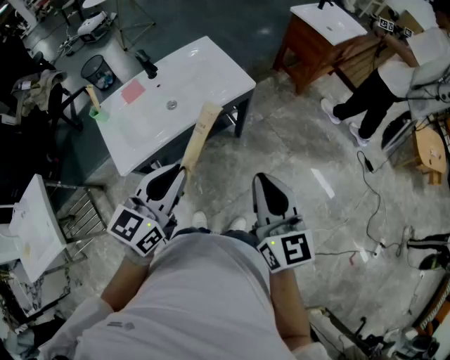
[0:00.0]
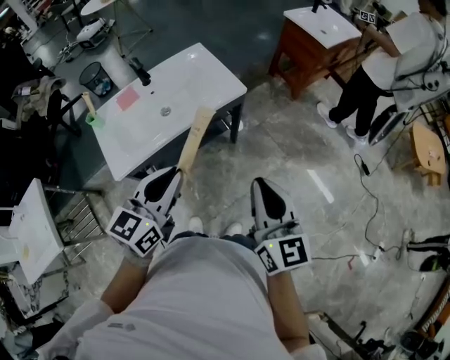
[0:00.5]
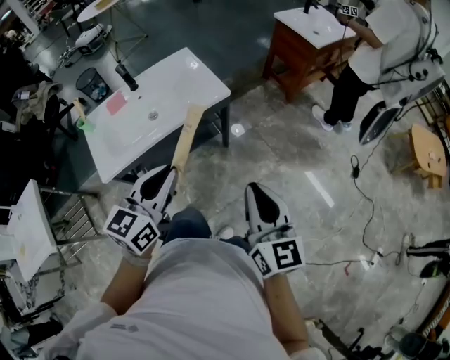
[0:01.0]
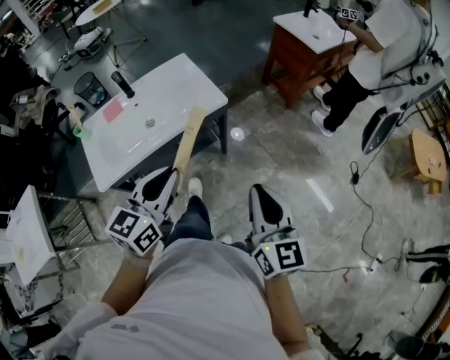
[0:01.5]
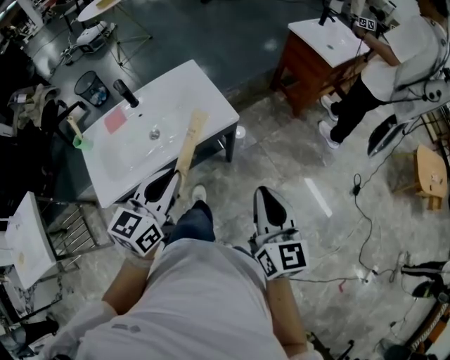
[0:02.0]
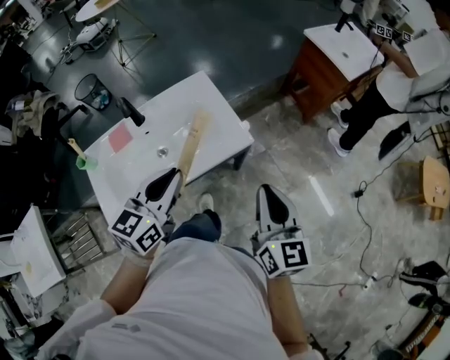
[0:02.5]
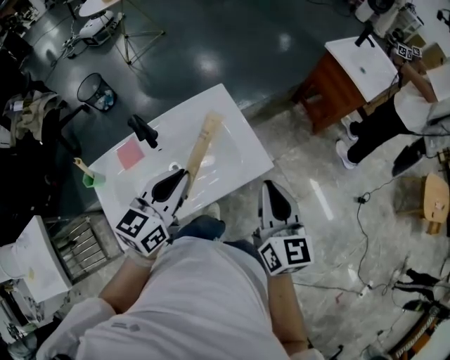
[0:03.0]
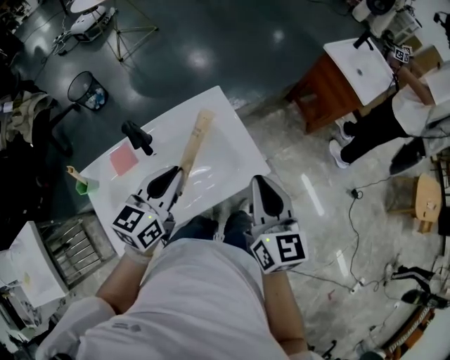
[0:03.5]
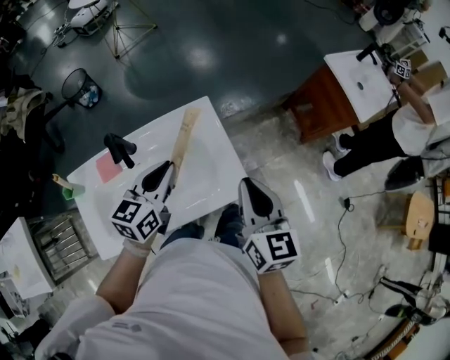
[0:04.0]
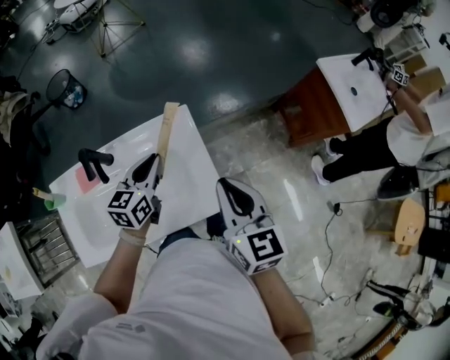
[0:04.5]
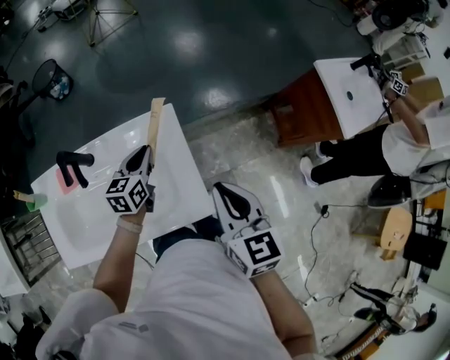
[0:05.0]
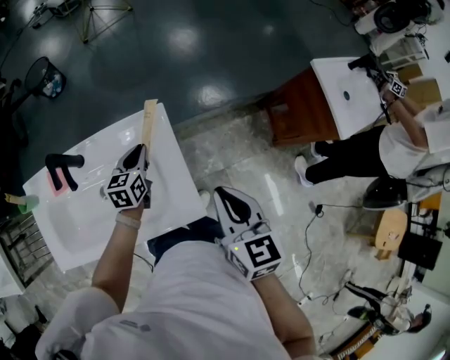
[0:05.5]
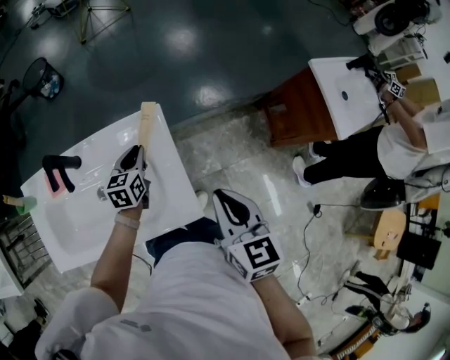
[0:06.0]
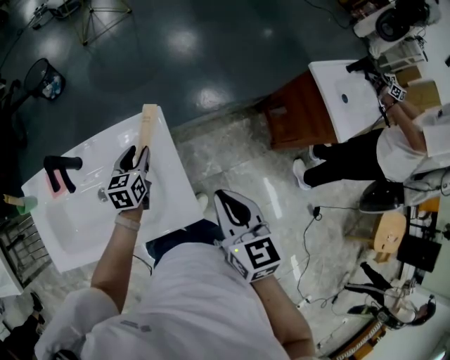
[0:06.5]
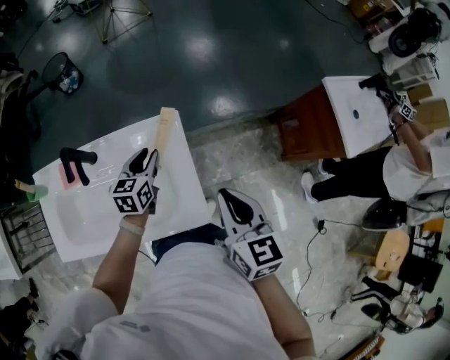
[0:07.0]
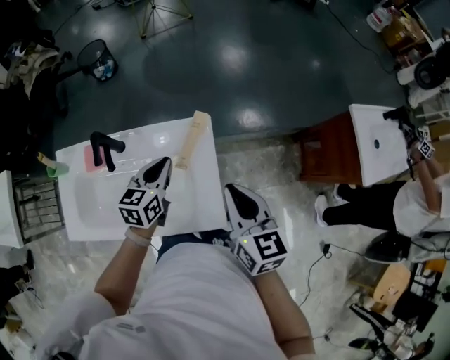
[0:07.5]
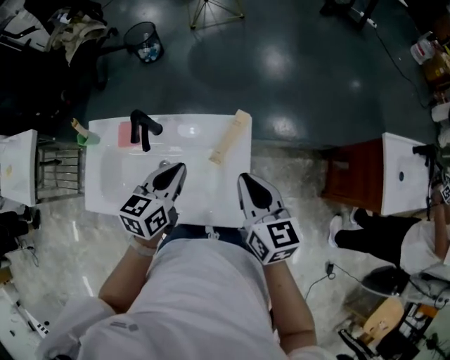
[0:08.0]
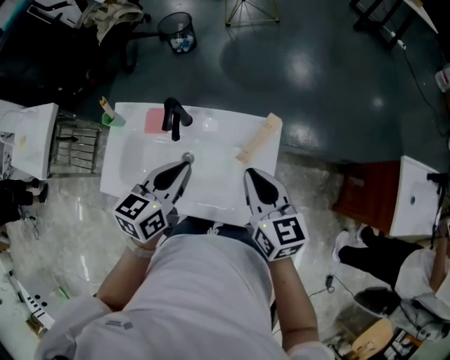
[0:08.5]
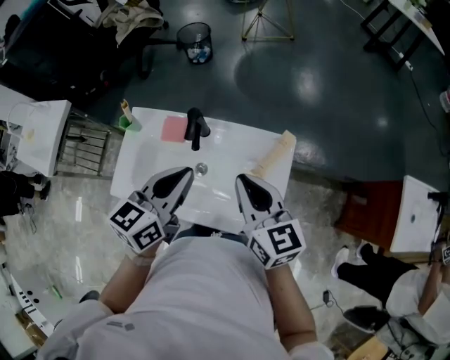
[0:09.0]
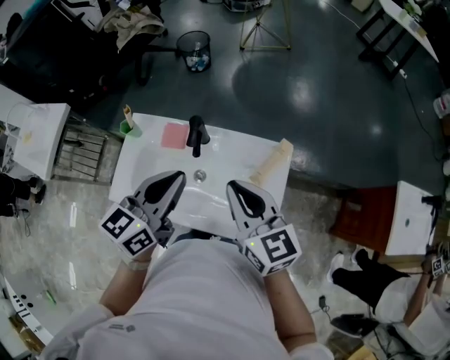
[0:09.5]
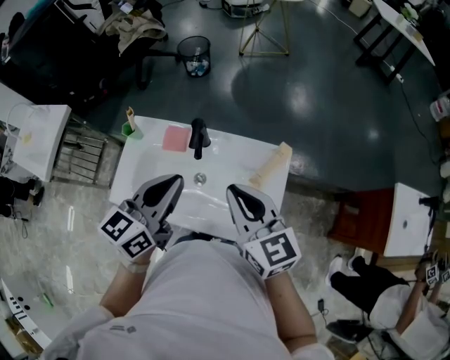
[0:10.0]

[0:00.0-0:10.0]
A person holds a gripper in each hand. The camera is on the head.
0:00.0 to 0:02.0: Both grippers travel together forward and to the right, about 20 cm.
0:02.0 to 0:04.0: The pair of grippers is taken forward, approximately 40 cm.
0:04.0 to 0:06.0: The right gripper is displaced to the right, forward and downward by roughly 15 cm, while the left gripper shifts roughly 25 cm downward and forward, and turns by about 20 degrees.
0:06.0 to 0:08.0: The right gripper travels to the left and forward by approximately 10 cm, and changes its angle by roughly 20 degrees, while the left gripper goes about 20 cm upward and backward, and opens, then closes again.
0:08.0 to 0:10.0: Both grippers travel together to the left and upward, roughly 20 cm. The right gripper turns by roughly 20 degrees.

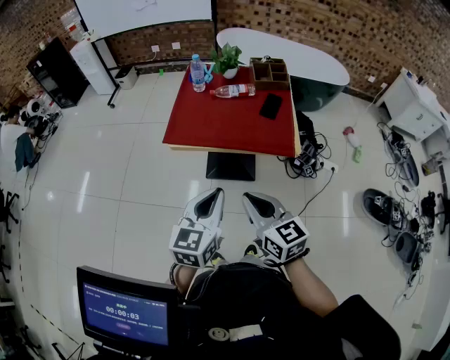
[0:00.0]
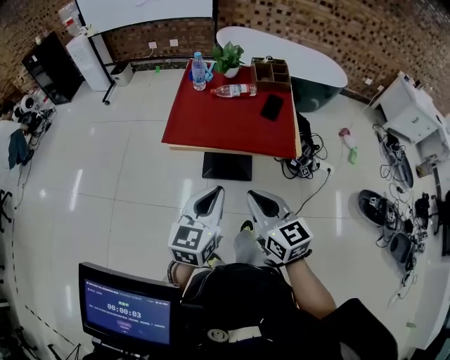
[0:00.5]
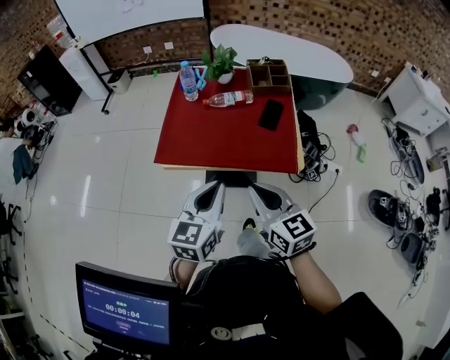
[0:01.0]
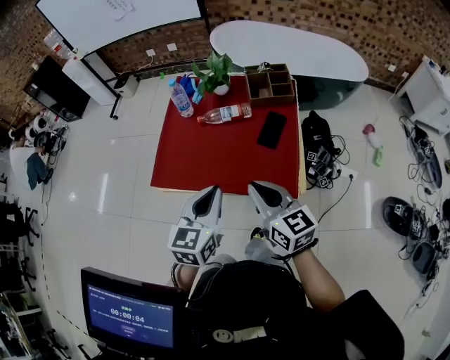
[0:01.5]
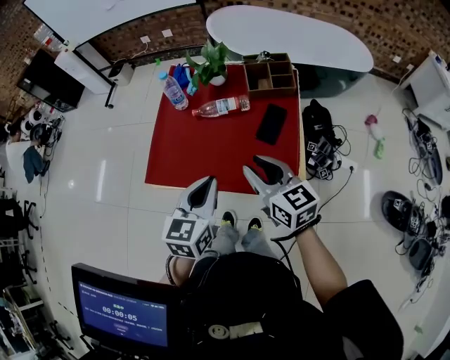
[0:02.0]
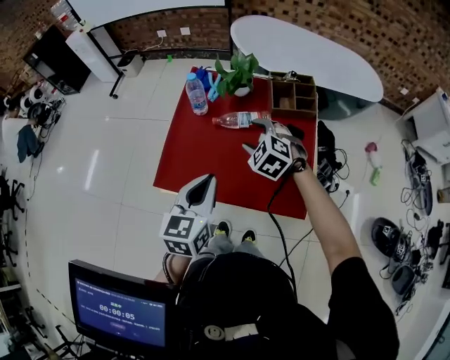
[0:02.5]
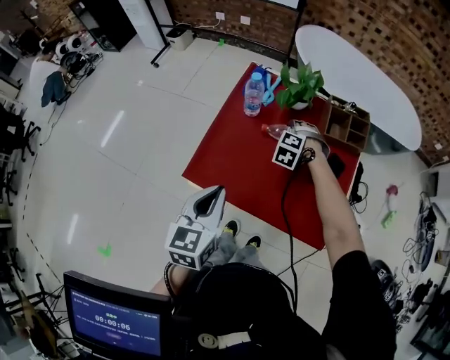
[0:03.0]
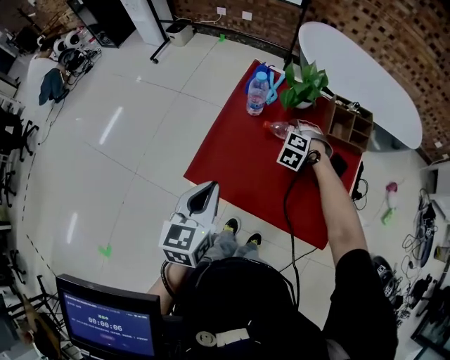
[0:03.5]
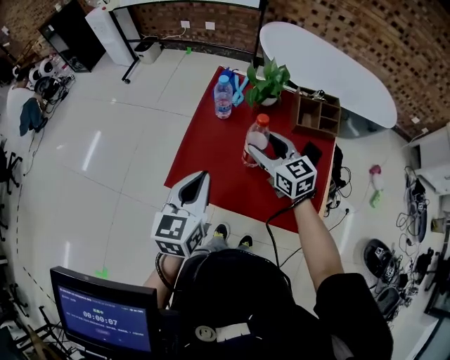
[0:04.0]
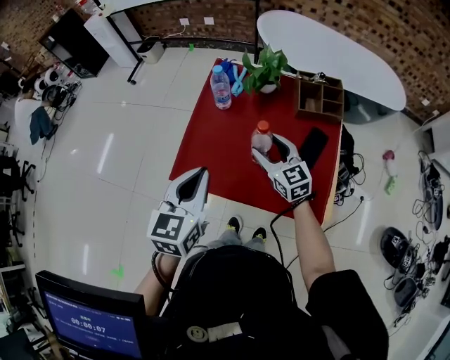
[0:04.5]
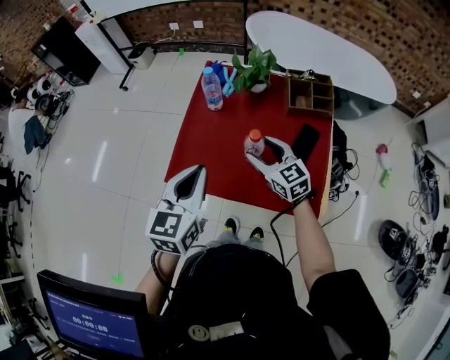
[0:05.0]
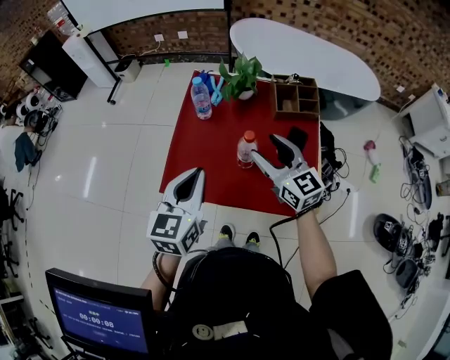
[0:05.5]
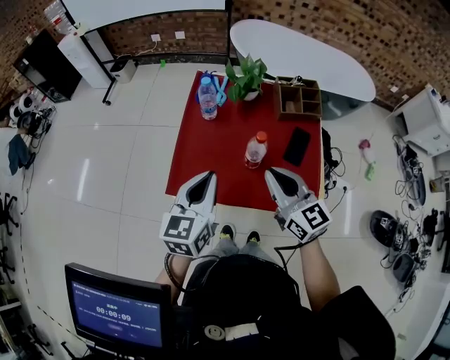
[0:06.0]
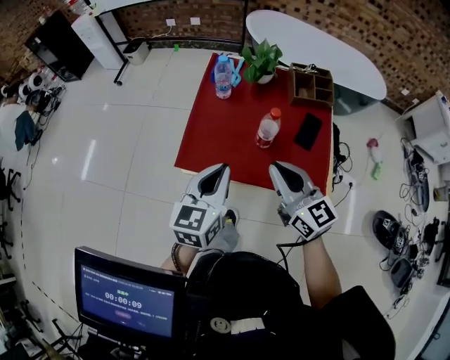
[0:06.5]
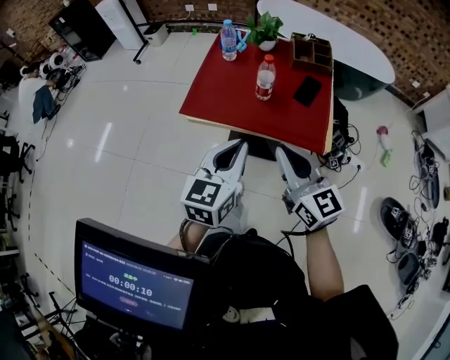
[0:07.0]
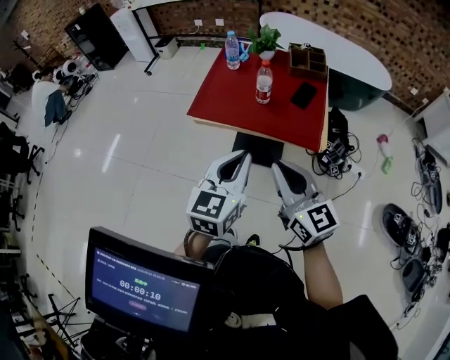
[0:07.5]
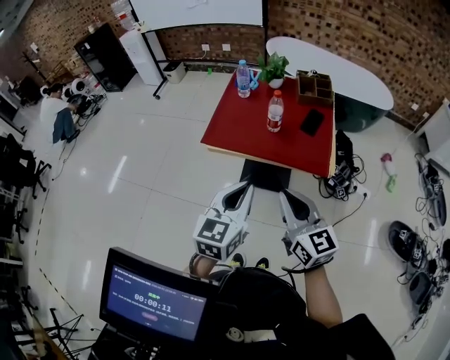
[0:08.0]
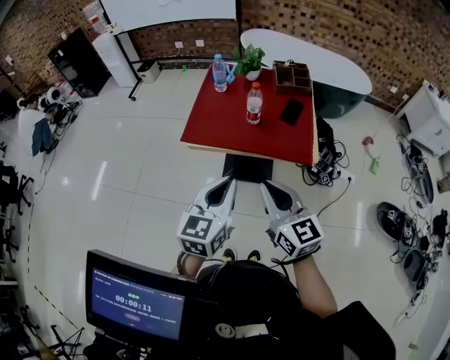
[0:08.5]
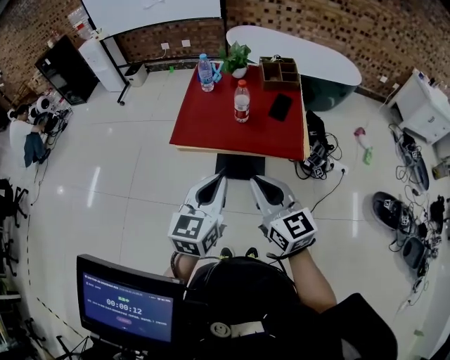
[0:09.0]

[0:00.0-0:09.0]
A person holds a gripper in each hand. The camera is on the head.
0:00.0 to 0:02.0: Both grippers move forward, some 30 cm. The right gripper opens up.
0:02.0 to 0:04.5: The right gripper goes roughly 20 cm forward, downward and to the left, and opens up; the left gripper goes about 15 cm to the left and forward.
0:04.5 to 0:07.0: The left gripper heads backward, covering roughly 25 cm; the right gripper goes roughly 40 cm backward and upward, and closes.
0:07.0 to 0:09.0: Both grippers move backward, approximately 10 cm.

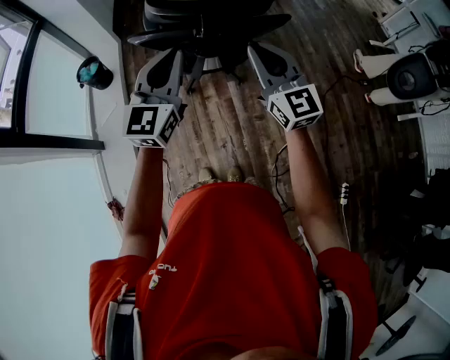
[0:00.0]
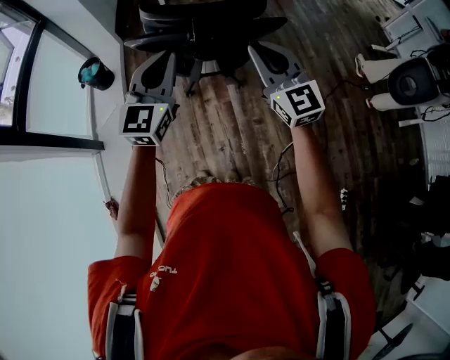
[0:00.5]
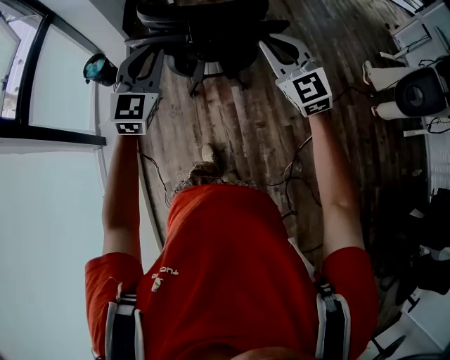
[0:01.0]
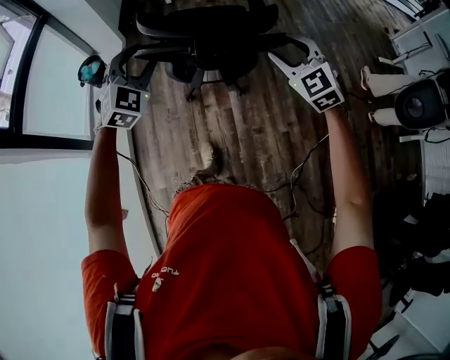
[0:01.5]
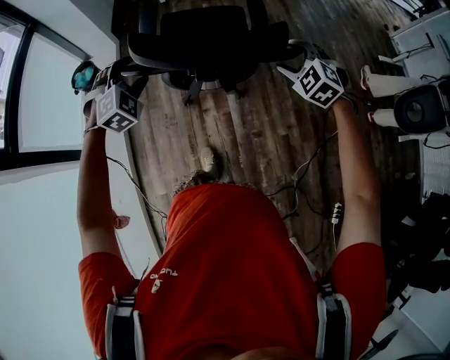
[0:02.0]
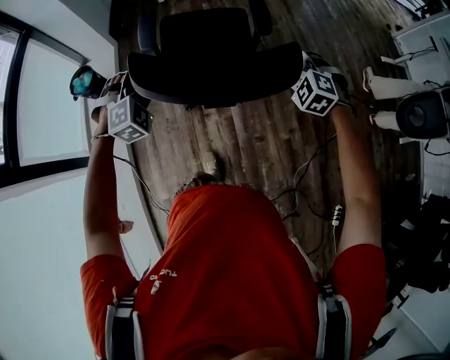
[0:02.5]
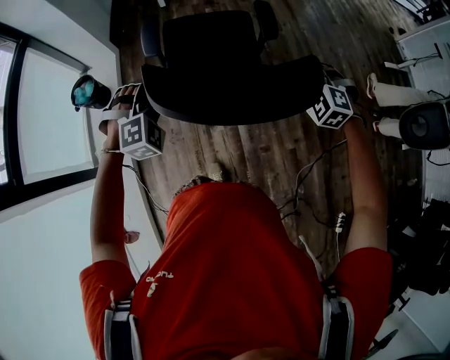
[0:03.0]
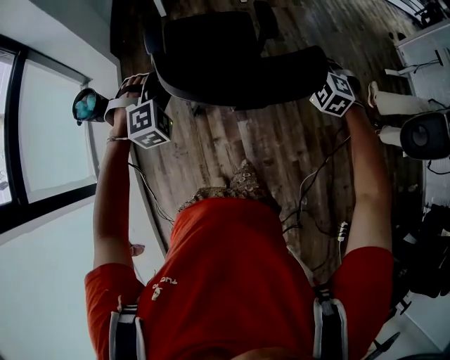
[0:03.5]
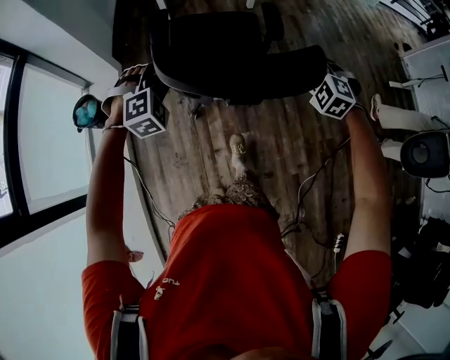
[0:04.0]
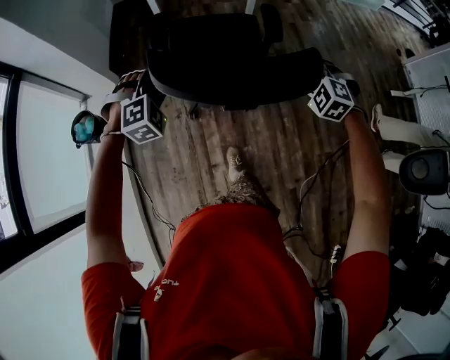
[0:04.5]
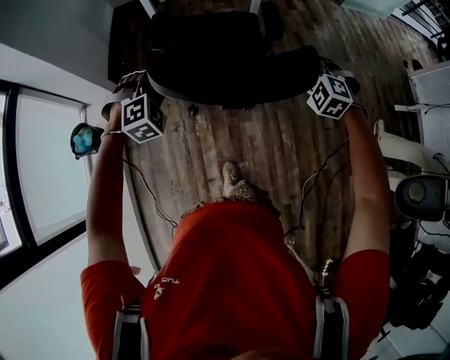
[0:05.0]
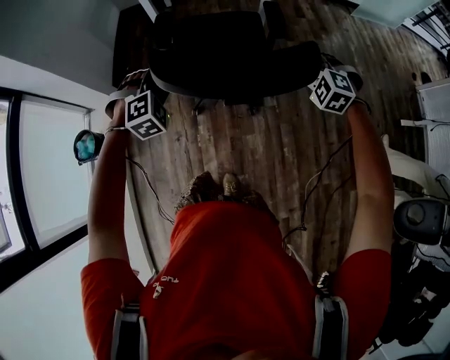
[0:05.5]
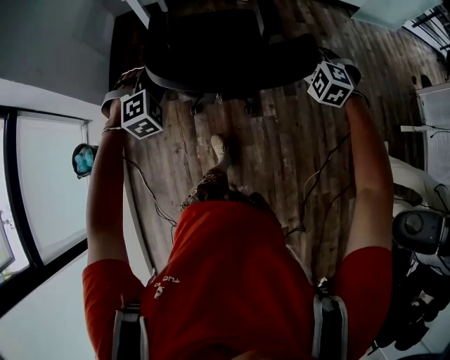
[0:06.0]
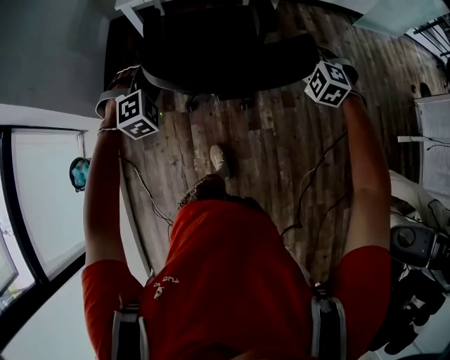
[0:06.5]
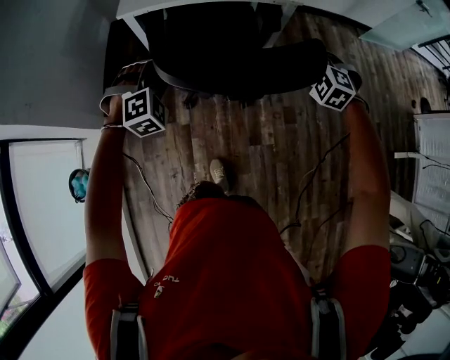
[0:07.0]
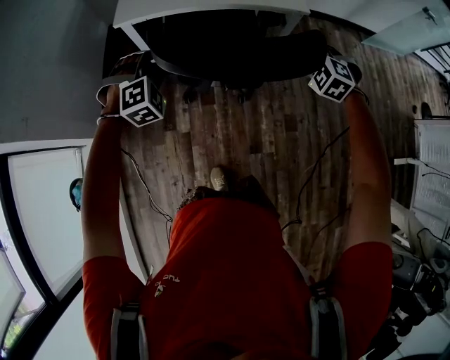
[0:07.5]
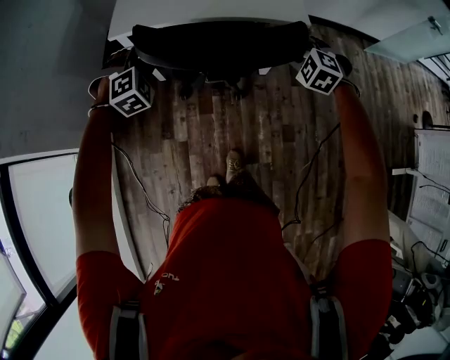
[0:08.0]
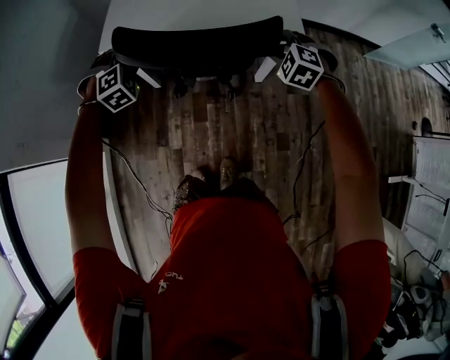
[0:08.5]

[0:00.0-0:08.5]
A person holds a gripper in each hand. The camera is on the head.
0:00.0 to 0:02.0: The left gripper travels forward and downward by some 25 cm, tips its fingers downward by about 40 degrees, and opens its fingers. The right gripper goes some 25 cm forward, to the right and downward, angles its fingers downward, by roughly 50 degrees, and opens up.
0:02.0 to 0:04.0: Both grippers move forward, some 25 cm. The left gripper closes up.
0:04.0 to 0:06.5: Both grippers are carried forward, about 50 cm.
0:06.5 to 0:08.5: The two grippers go some 40 cm forward.
